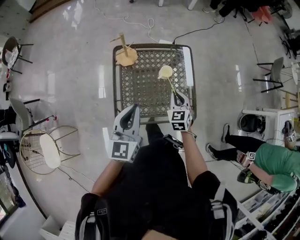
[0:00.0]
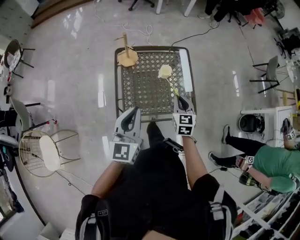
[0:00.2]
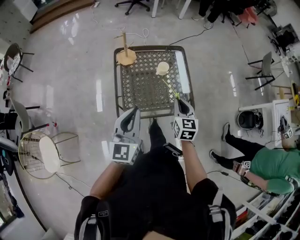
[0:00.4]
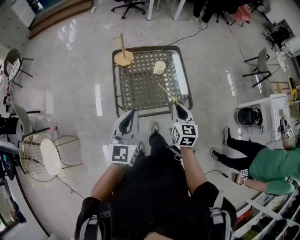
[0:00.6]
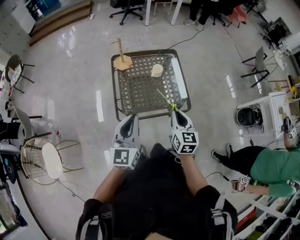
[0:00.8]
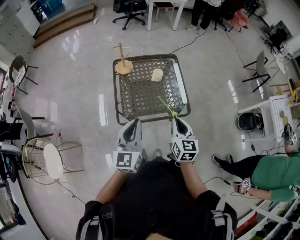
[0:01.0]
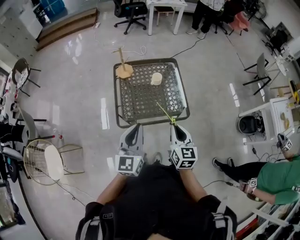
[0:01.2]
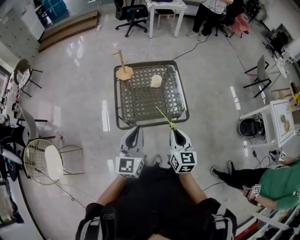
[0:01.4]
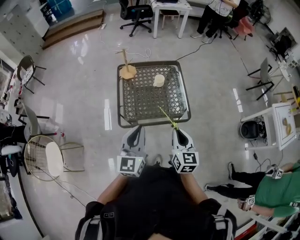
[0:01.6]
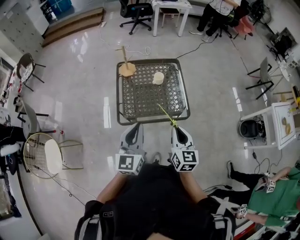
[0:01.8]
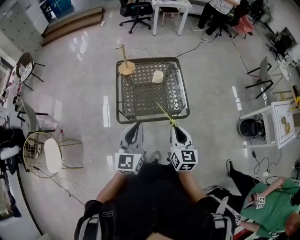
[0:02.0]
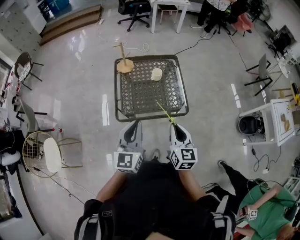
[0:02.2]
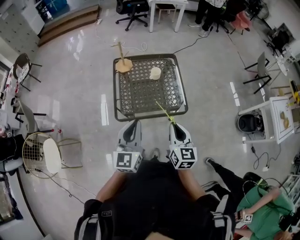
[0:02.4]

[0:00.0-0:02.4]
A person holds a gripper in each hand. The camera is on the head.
0:00.0 to 0:01.2: The left gripper moves backward, approximately 20 cm. The right gripper moves backward and upward, about 35 cm, and swivels roughly 30 degrees.
0:01.2 to 0:02.4: There are only small adjustments of the grippers.

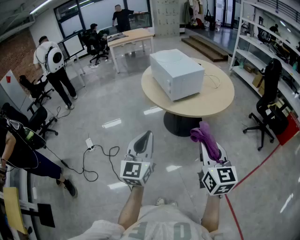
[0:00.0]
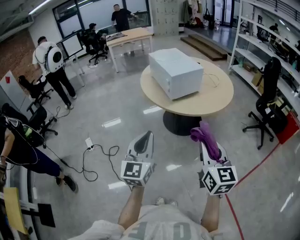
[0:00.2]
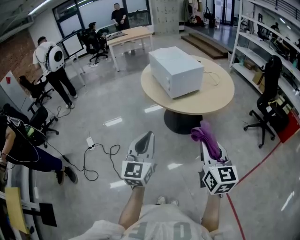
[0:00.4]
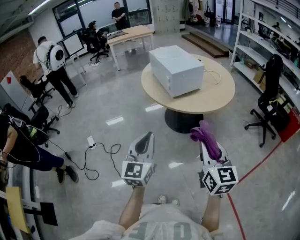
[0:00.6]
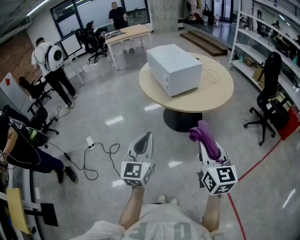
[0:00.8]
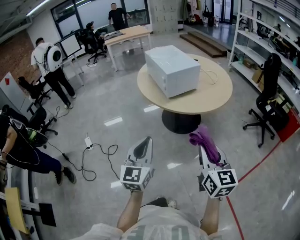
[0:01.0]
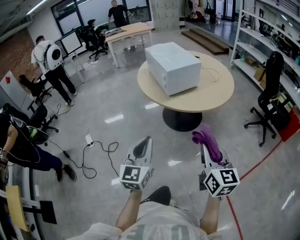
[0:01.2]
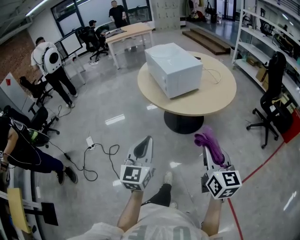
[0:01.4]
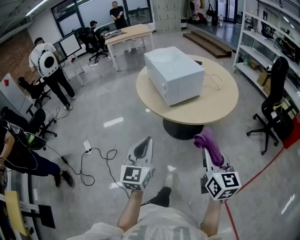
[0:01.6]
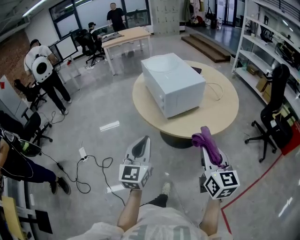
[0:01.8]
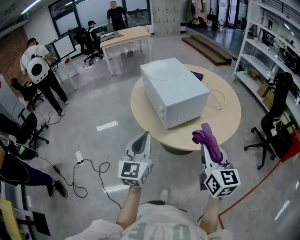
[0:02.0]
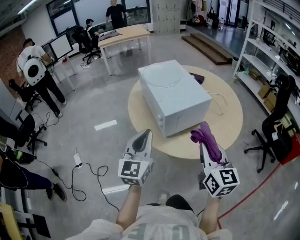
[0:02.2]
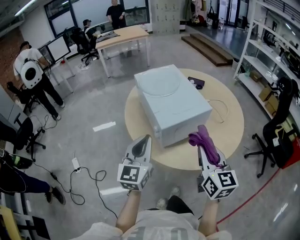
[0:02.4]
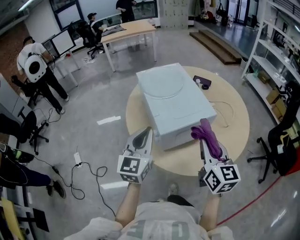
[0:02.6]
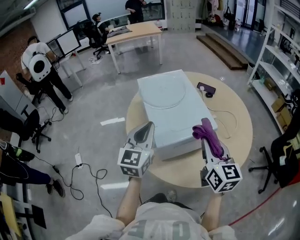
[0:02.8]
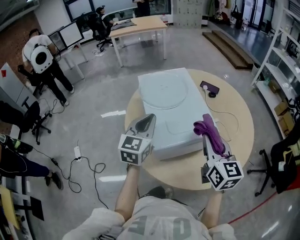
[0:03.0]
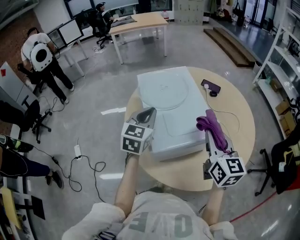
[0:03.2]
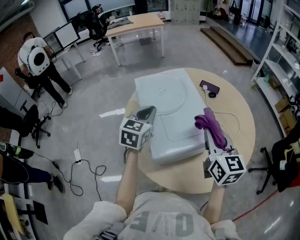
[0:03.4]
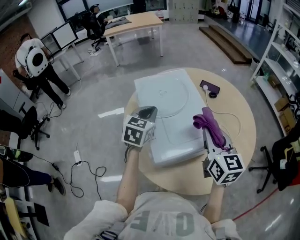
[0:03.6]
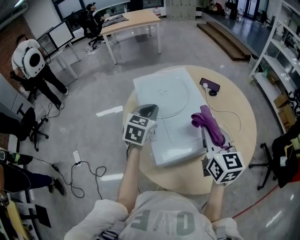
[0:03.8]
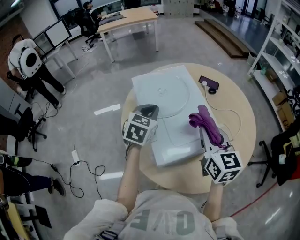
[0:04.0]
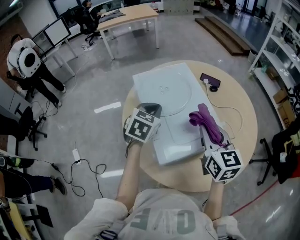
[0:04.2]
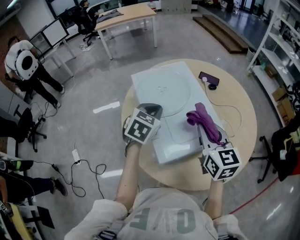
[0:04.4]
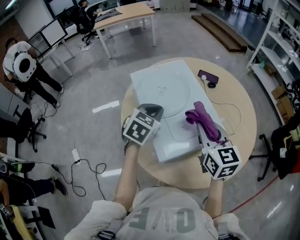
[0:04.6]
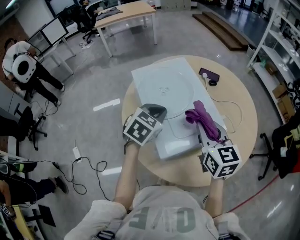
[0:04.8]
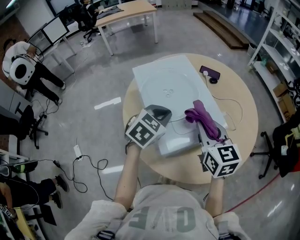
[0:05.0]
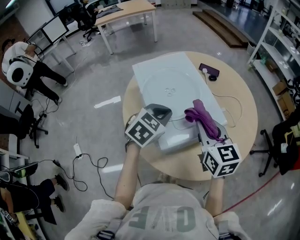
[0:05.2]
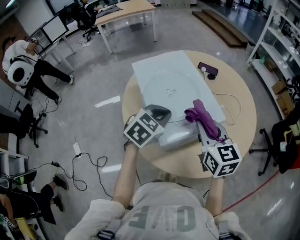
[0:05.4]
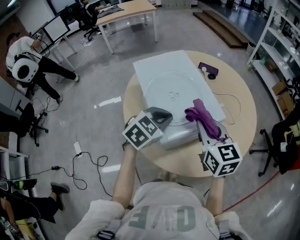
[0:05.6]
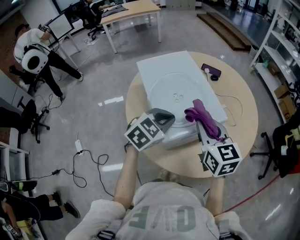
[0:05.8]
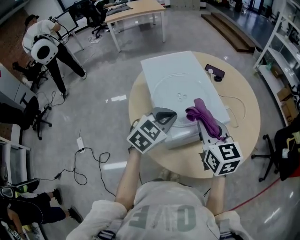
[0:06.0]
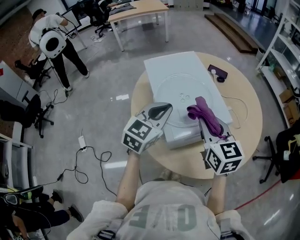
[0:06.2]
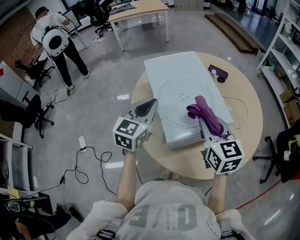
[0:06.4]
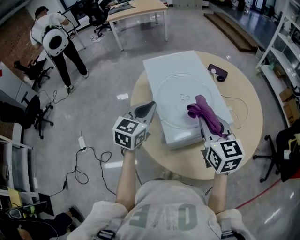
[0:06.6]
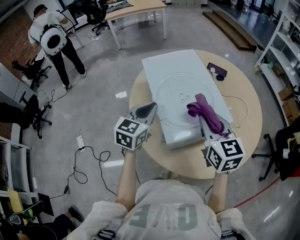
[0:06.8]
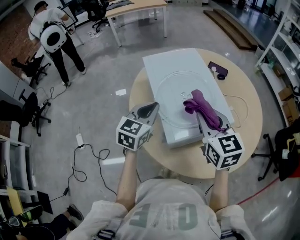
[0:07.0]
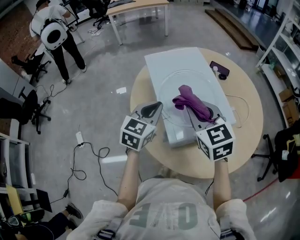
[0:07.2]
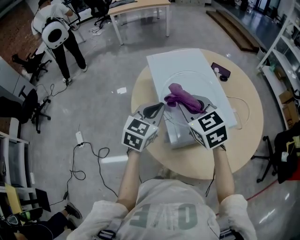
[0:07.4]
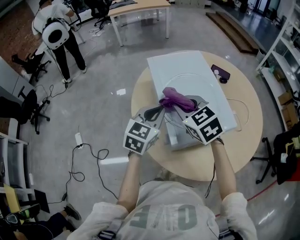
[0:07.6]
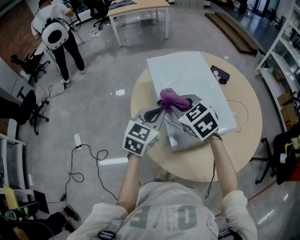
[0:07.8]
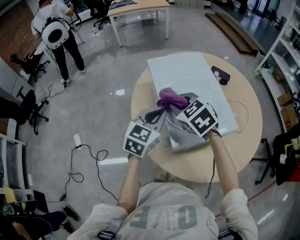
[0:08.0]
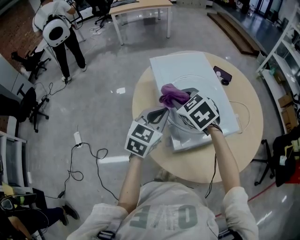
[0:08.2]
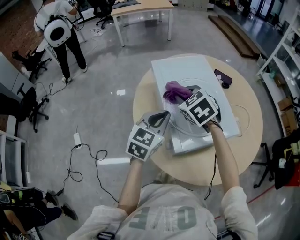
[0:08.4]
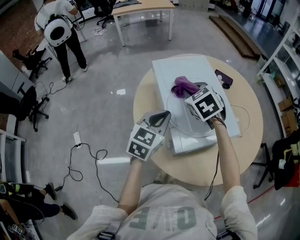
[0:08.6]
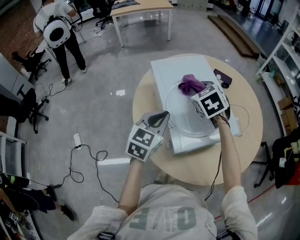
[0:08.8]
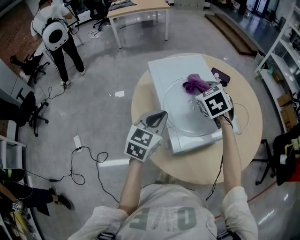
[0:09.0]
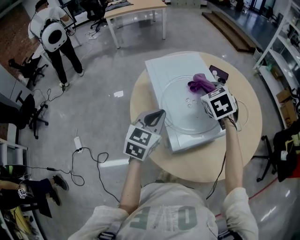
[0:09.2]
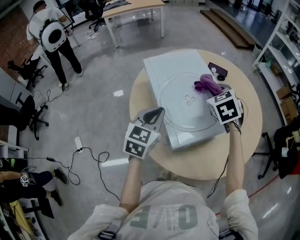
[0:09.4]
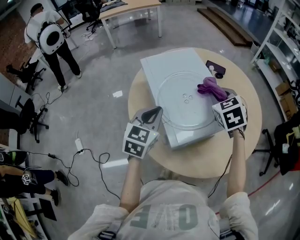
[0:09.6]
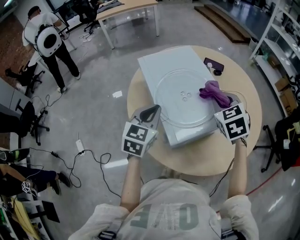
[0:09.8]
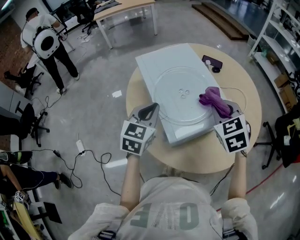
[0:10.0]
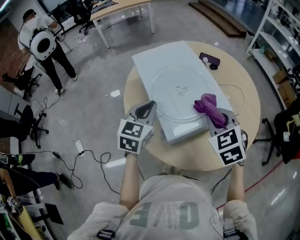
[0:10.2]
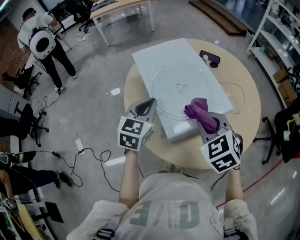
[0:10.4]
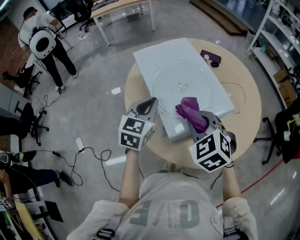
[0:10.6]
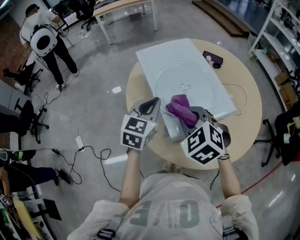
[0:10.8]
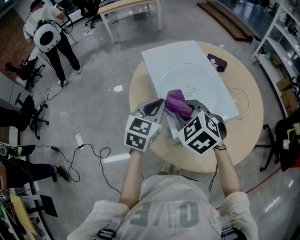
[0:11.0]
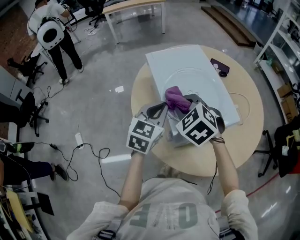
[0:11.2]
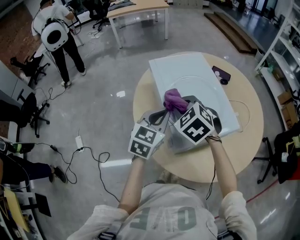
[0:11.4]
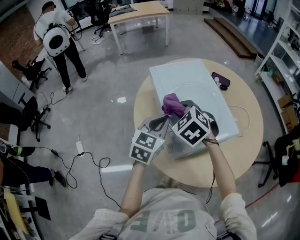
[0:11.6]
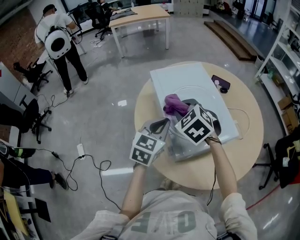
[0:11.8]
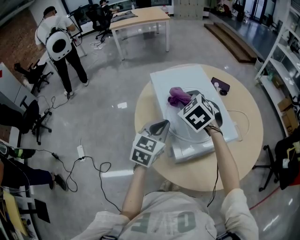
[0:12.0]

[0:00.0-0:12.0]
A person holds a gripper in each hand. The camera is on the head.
0:00.0 to 0:01.6: The right gripper shifts some 10 cm forward and to the right, while the left gripper is displaced forward and downward by about 10 cm.
0:01.6 to 0:03.0: The two grippers travel together, forward, about 50 cm.
0:03.0 to 0:04.4: The right gripper shifts approximately 10 cm forward and to the left, while the left gripper moves forward and downward, about 10 cm, and turns by some 30 degrees.
0:04.4 to 0:06.0: The right gripper moves backward, roughly 5 cm; the left gripper heads backward and to the right, covering some 10 cm.
0:06.0 to 0:07.6: The left gripper heads to the left, covering about 10 cm, and turns by about 20 degrees. Meanwhile the right gripper heads to the left and forward, covering some 15 cm, and turns by roughly 30 degrees.
0:07.6 to 0:09.0: The right gripper travels forward and to the right by roughly 15 cm, and rotates approximately 20 degrees.
0:09.0 to 0:10.4: The right gripper shifts approximately 20 cm backward.
0:10.4 to 0:12.0: The right gripper heads forward and to the left, covering roughly 20 cm.

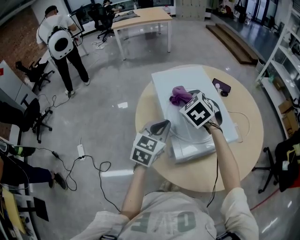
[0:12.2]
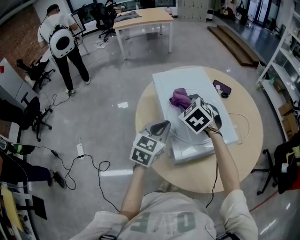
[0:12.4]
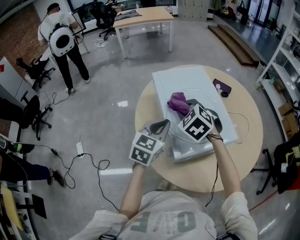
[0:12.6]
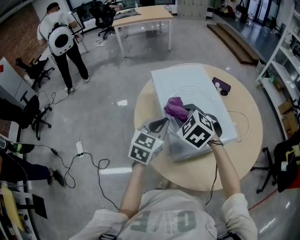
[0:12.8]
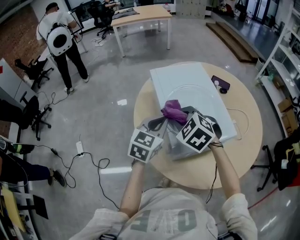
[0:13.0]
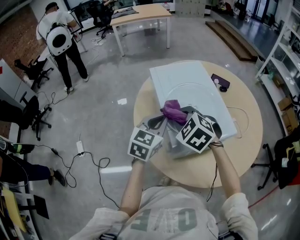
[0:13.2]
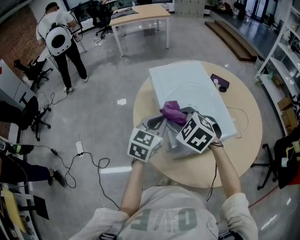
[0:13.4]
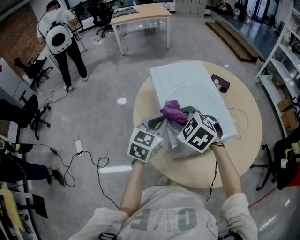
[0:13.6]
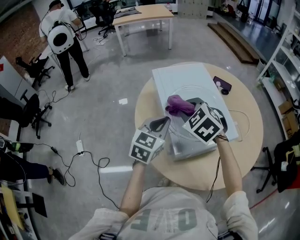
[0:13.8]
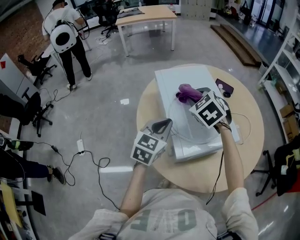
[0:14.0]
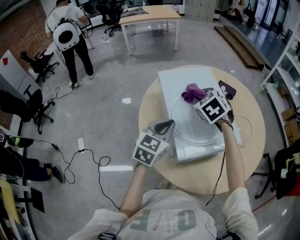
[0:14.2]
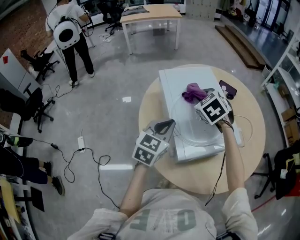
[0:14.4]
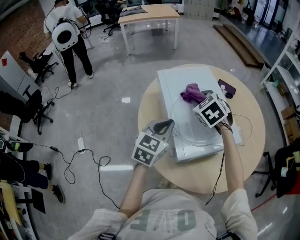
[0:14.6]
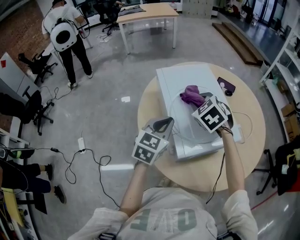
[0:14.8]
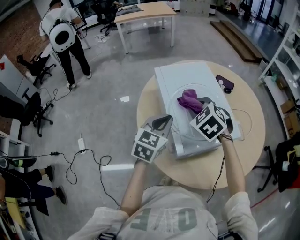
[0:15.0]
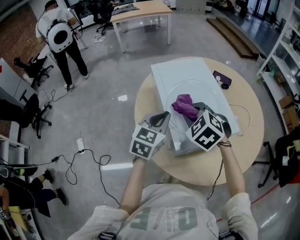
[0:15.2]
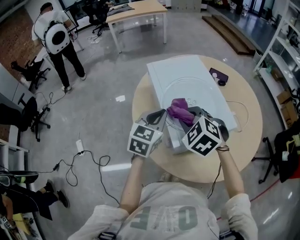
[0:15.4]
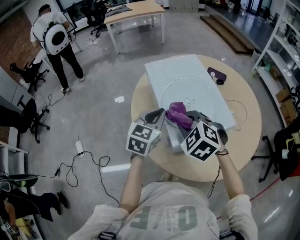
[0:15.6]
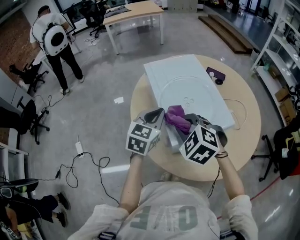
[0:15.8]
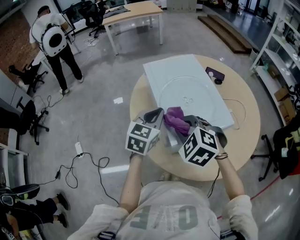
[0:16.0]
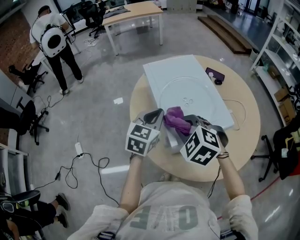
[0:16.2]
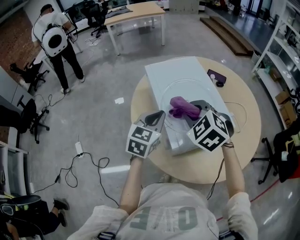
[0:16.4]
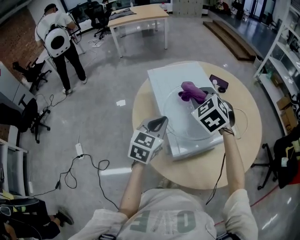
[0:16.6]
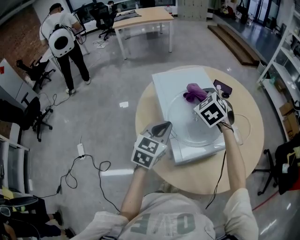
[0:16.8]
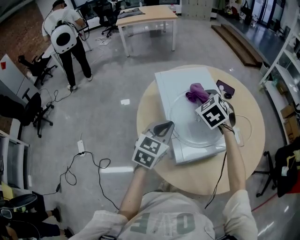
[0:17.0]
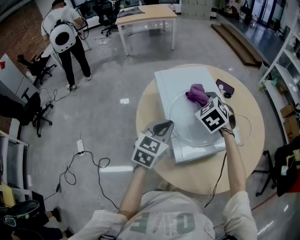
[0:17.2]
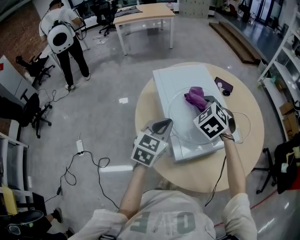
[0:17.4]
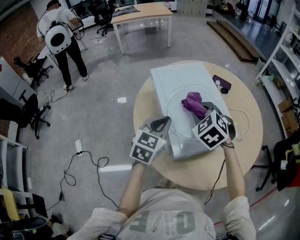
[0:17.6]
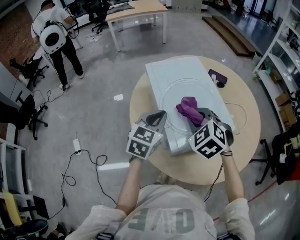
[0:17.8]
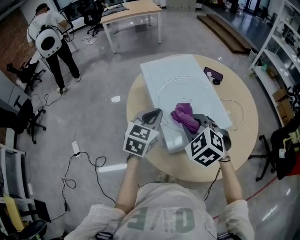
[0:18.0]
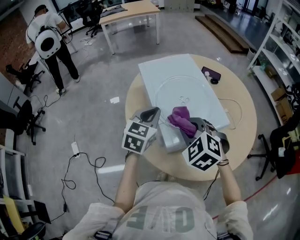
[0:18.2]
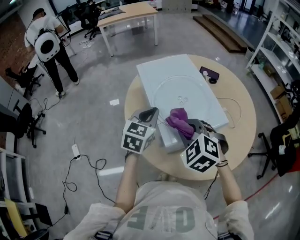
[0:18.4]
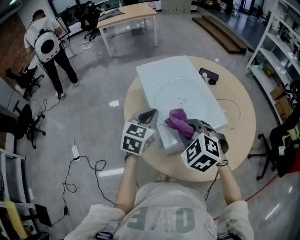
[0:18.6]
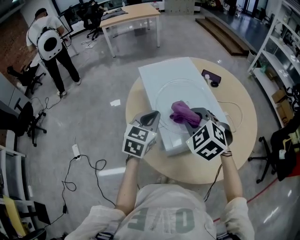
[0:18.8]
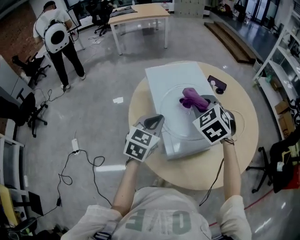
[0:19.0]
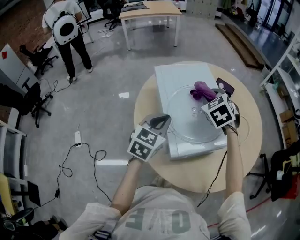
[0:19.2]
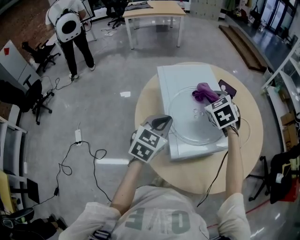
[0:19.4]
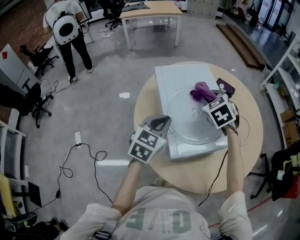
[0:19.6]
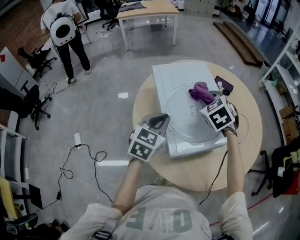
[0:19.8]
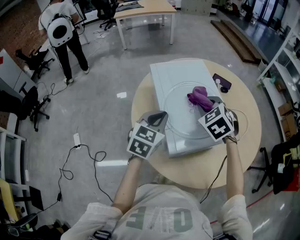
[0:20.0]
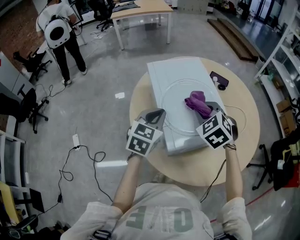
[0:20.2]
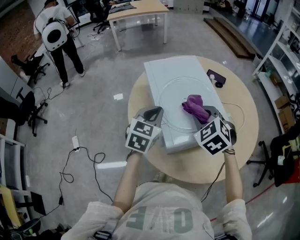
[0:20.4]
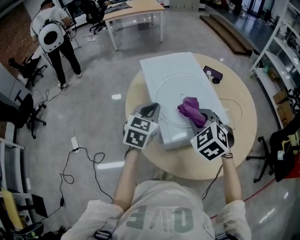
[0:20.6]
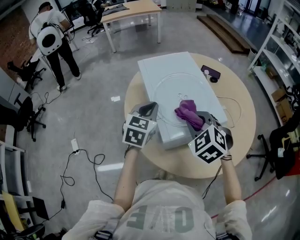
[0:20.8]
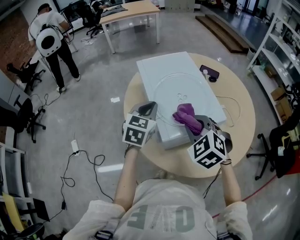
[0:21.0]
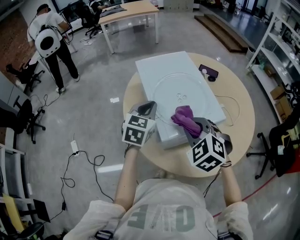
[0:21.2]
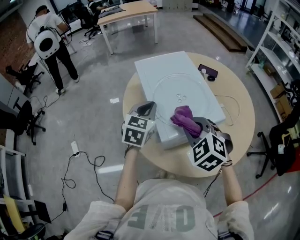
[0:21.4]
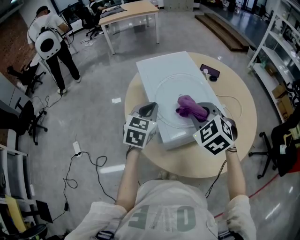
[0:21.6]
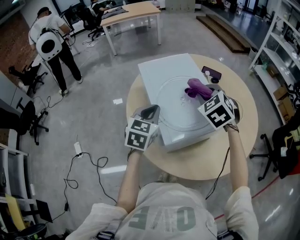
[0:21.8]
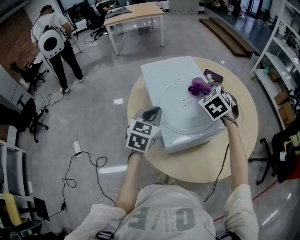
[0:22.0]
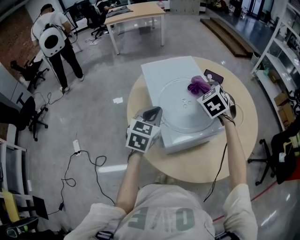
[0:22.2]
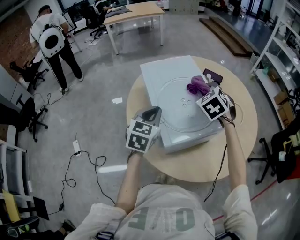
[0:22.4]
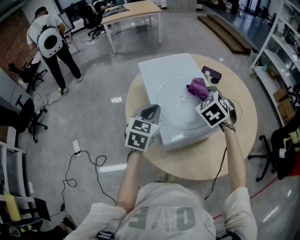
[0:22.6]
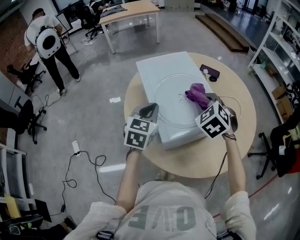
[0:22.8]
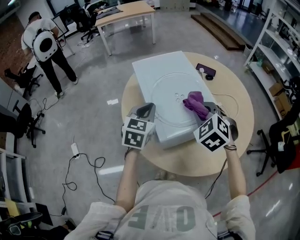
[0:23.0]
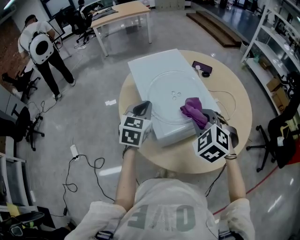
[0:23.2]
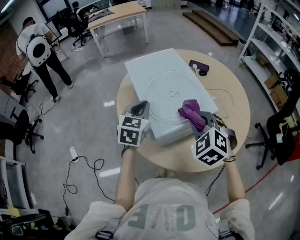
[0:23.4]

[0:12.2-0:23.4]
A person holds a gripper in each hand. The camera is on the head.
0:12.2 to 0:13.8: The right gripper is displaced backward by some 5 cm.
0:13.8 to 0:15.4: The right gripper travels backward by approximately 5 cm.
0:15.4 to 0:17.0: The right gripper is displaced forward by roughly 15 cm.
0:17.0 to 0:18.6: The right gripper heads backward, covering about 20 cm.
0:18.6 to 0:20.2: The right gripper is displaced forward by some 10 cm.
0:20.2 to 0:21.8: The right gripper travels backward and back again, approximately 10 cm each way.
0:21.8 to 0:23.4: The right gripper heads backward, covering about 15 cm.
